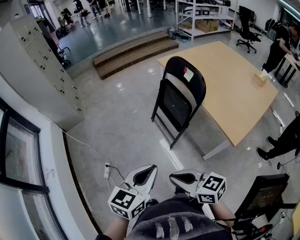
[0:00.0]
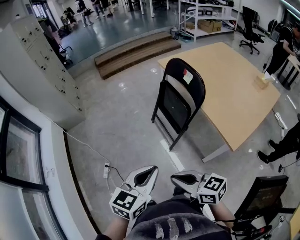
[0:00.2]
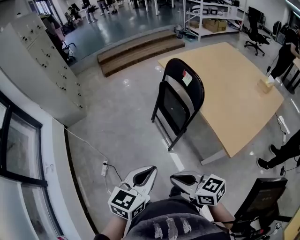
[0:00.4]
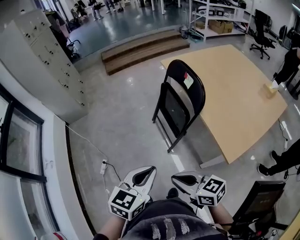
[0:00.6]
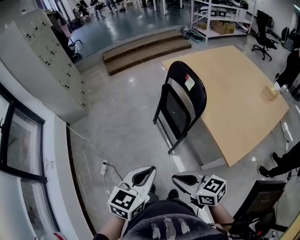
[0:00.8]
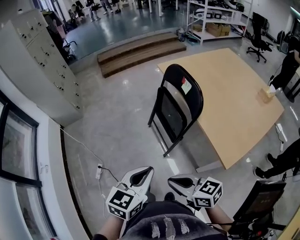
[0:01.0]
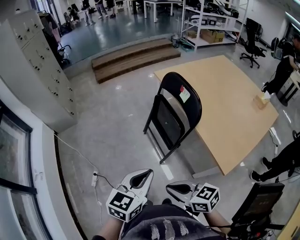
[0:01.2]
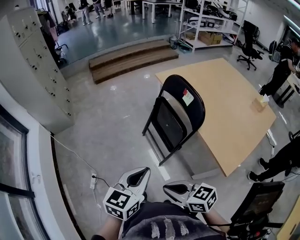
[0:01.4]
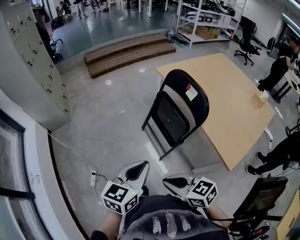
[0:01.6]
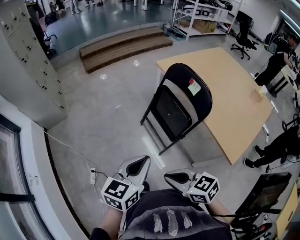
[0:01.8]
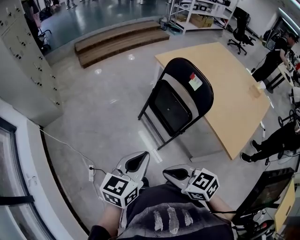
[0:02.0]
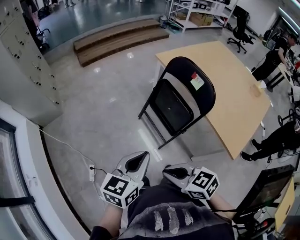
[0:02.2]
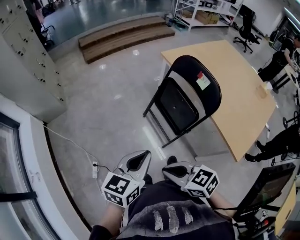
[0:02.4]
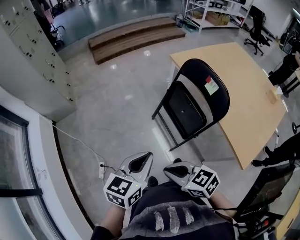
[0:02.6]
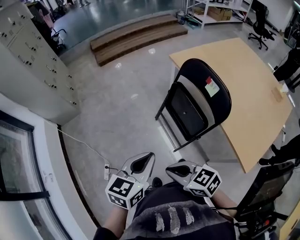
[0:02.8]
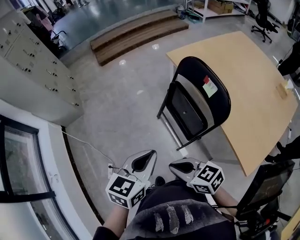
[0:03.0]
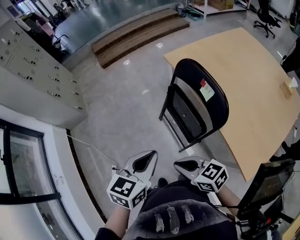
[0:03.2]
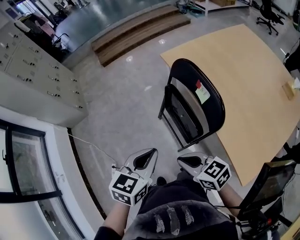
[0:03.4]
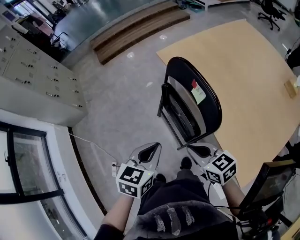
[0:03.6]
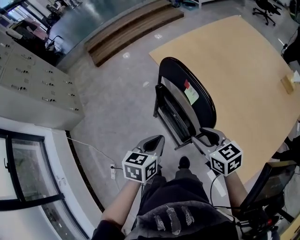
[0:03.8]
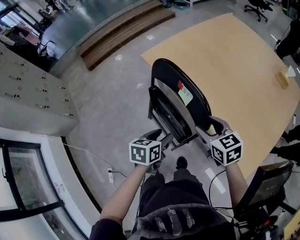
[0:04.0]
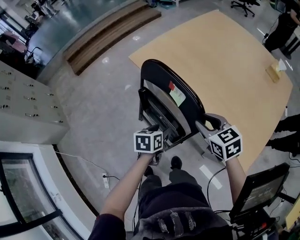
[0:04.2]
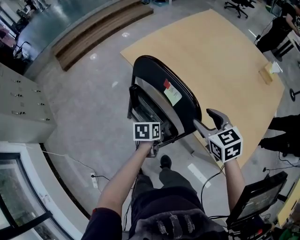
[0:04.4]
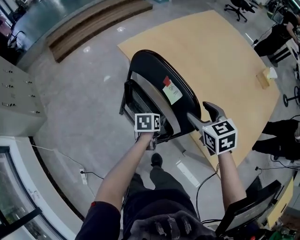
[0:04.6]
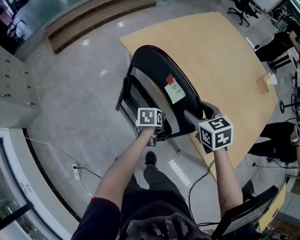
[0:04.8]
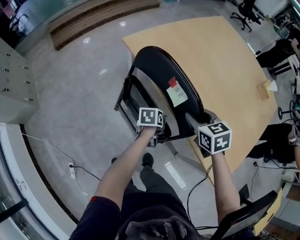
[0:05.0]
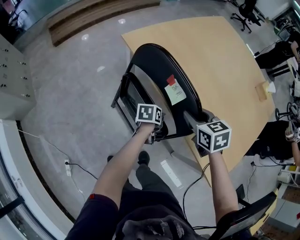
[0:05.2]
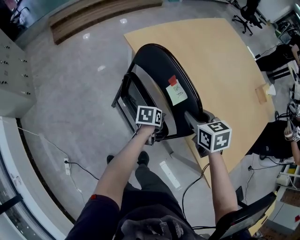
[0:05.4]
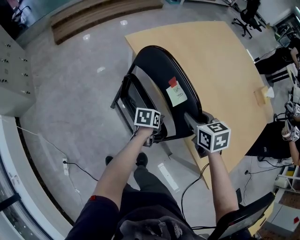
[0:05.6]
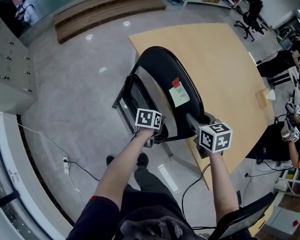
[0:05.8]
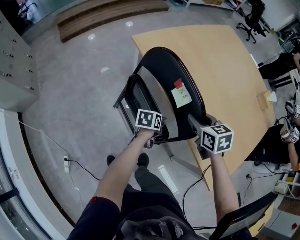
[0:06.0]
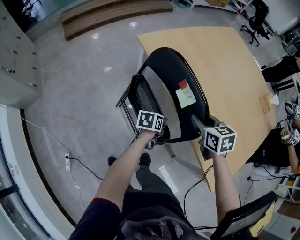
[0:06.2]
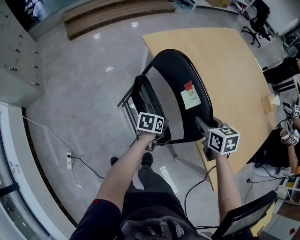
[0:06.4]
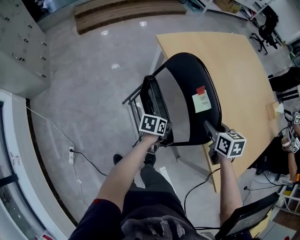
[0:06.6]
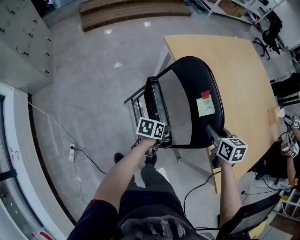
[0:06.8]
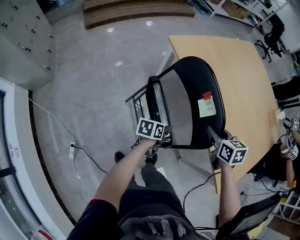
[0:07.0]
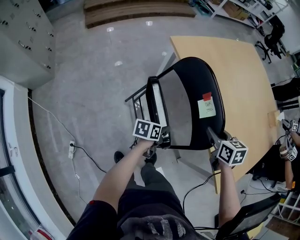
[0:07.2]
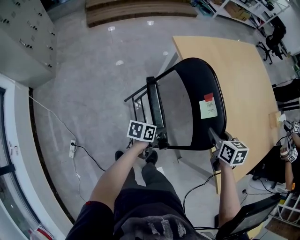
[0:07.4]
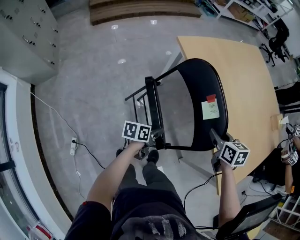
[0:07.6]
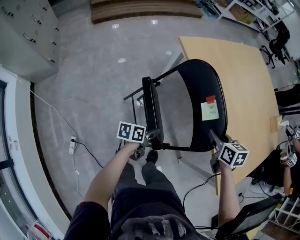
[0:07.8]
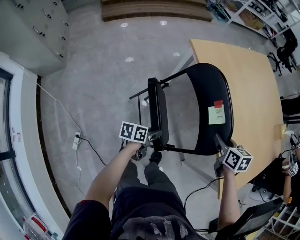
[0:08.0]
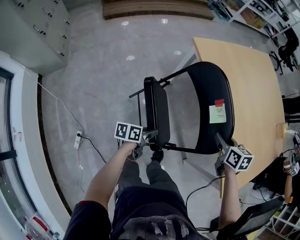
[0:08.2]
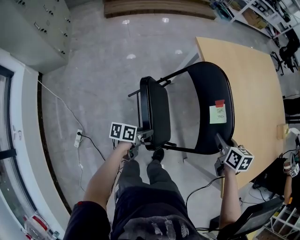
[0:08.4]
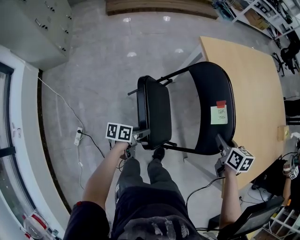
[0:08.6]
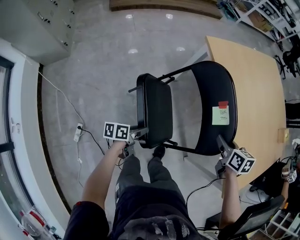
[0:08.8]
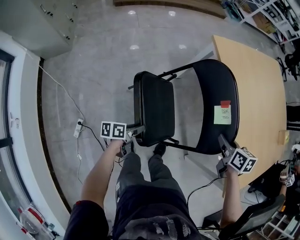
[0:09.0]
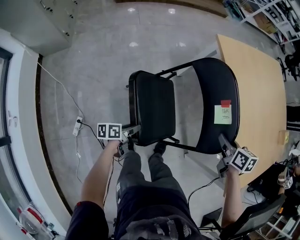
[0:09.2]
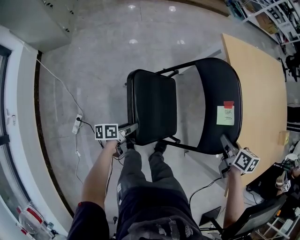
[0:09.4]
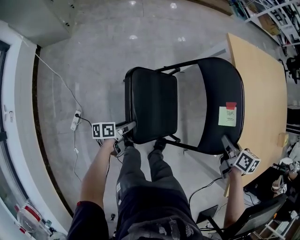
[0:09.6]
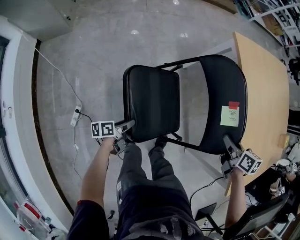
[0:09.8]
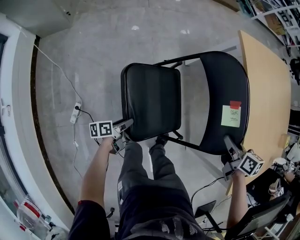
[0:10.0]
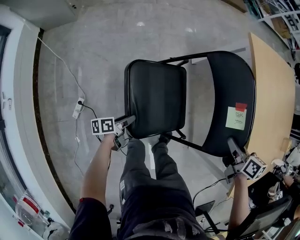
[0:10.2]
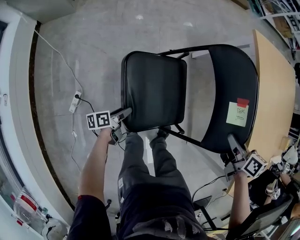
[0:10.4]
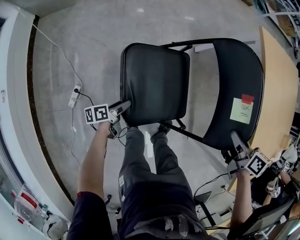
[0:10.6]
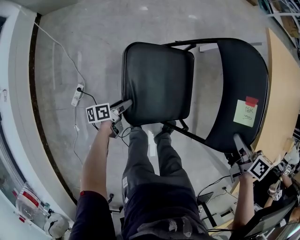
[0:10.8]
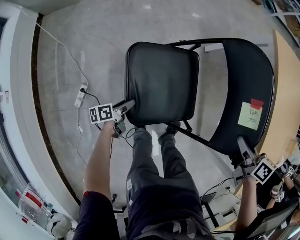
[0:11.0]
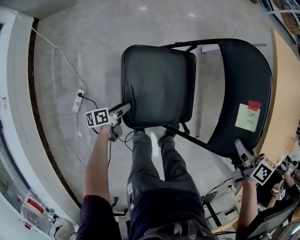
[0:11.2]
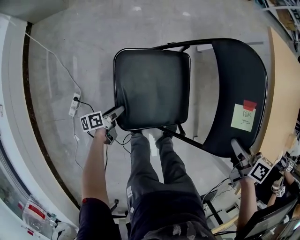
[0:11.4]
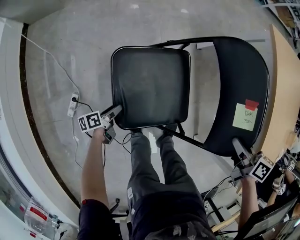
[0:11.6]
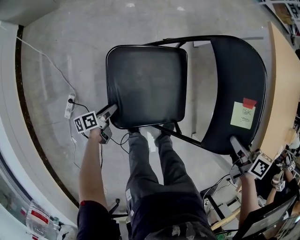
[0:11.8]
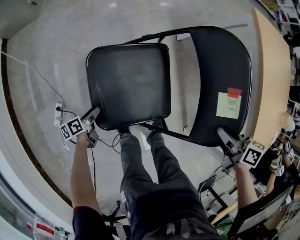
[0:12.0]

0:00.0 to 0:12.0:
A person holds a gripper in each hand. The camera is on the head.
0:00.0 to 0:01.6: The two grippers go some 15 cm forward.
0:01.6 to 0:03.0: The grippers both shift forward by roughly 15 cm.
0:03.0 to 0:04.4: The left gripper changes place by some 40 cm, turns by roughly 30 degrees, and opens. Meanwhile the right gripper shifts by approximately 40 cm, turns by roughly 50 degrees, and opens its fingers.
0:04.4 to 0:06.0: Both grippers travel together downward, some 5 cm.
0:06.0 to 0:07.6: The left gripper heads backward and to the left, covering approximately 20 cm. Meanwhile the right gripper moves backward, roughly 5 cm.
0:07.6 to 0:09.0: The left gripper heads to the left, backward and downward, covering roughly 20 cm; the right gripper moves to the left, roughly 5 cm.
0:09.0 to 0:10.4: The right gripper moves to the left and downward, some 15 cm, while the left gripper goes about 25 cm to the left, downward and backward, and rotates approximately 20 degrees.
0:10.4 to 0:12.0: The left gripper heads downward, covering approximately 5 cm.

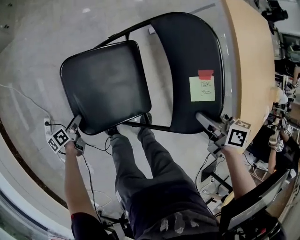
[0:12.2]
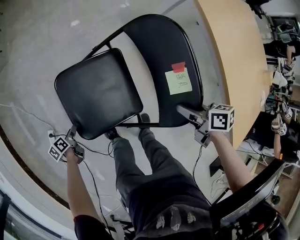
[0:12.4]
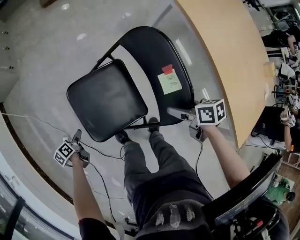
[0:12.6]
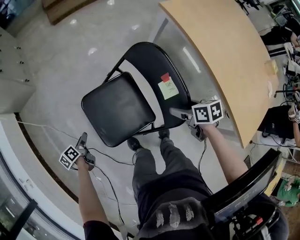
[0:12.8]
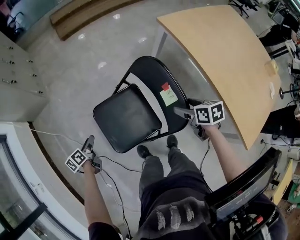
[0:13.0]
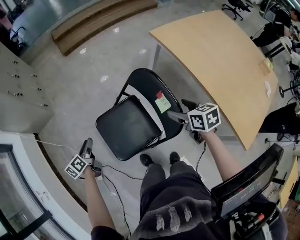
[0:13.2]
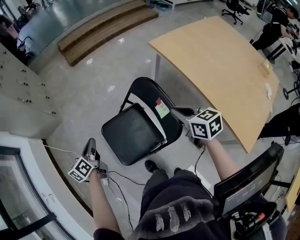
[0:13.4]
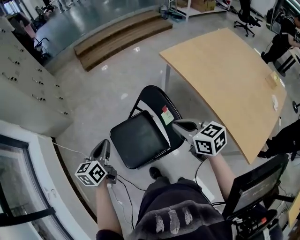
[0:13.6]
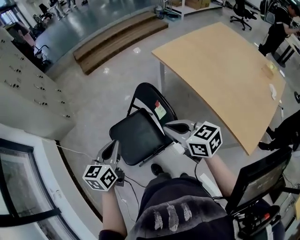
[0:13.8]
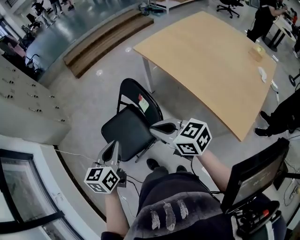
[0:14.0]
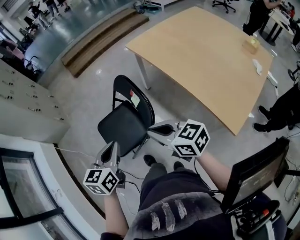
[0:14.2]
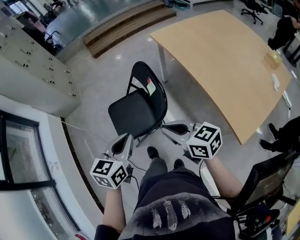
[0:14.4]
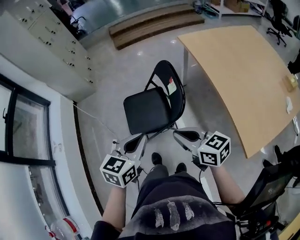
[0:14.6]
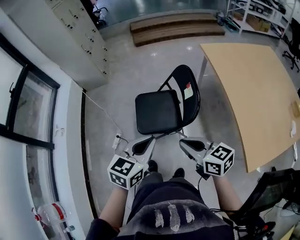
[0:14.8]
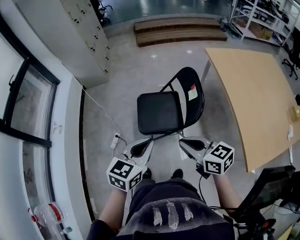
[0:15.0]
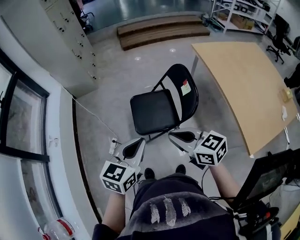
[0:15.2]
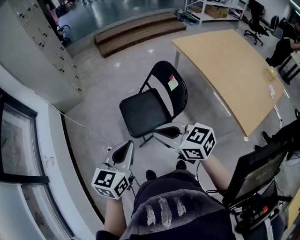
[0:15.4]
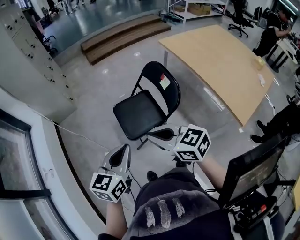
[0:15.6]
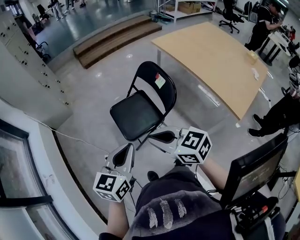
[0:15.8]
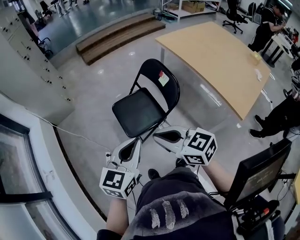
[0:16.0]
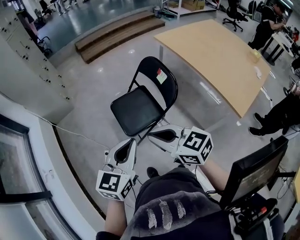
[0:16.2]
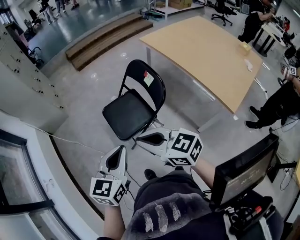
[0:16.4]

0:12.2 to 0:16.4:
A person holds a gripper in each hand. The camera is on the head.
0:12.2 to 0:13.6: The right gripper shifts roughly 25 cm upward, rotates about 40 degrees, and opens and closes again. The left gripper is displaced upward by some 50 cm, rotates around the line of its fingers by approximately 50 degrees, clockwise from behind, and closes.
0:13.6 to 0:15.0: The left gripper heads backward, covering approximately 30 cm. The right gripper travels backward and to the left by roughly 25 cm, and turns by roughly 30 degrees.
0:15.0 to 0:16.4: The grippers both shift to the left by approximately 15 cm.

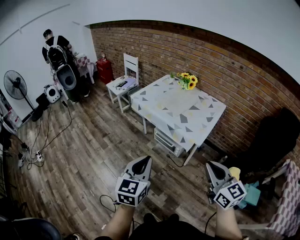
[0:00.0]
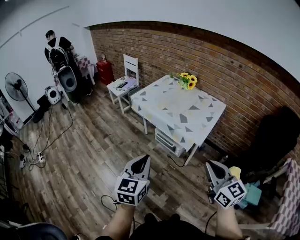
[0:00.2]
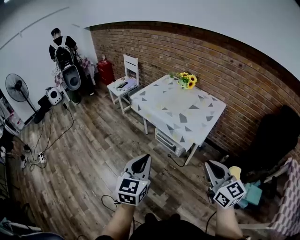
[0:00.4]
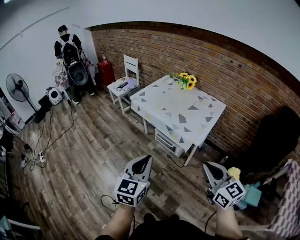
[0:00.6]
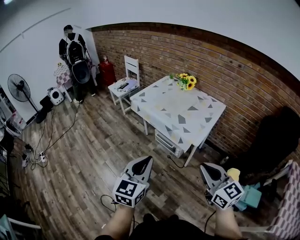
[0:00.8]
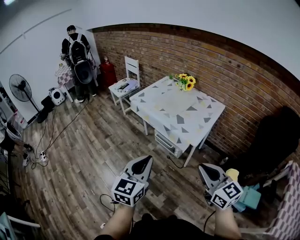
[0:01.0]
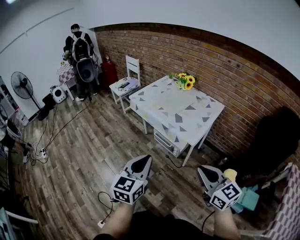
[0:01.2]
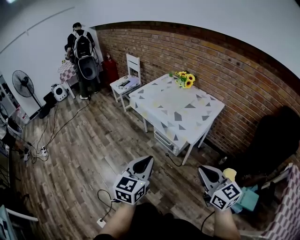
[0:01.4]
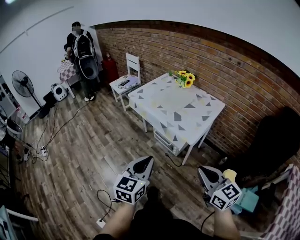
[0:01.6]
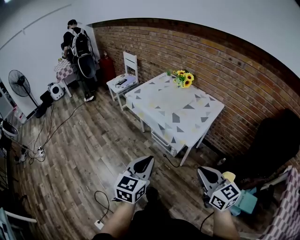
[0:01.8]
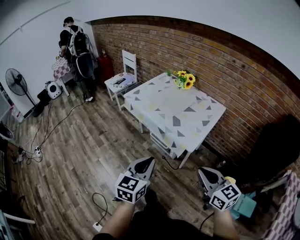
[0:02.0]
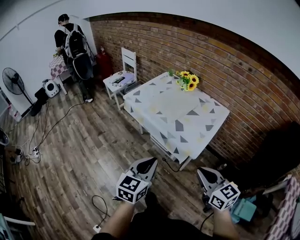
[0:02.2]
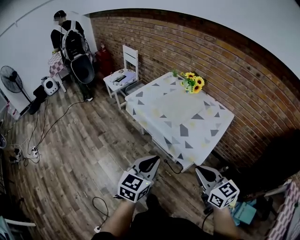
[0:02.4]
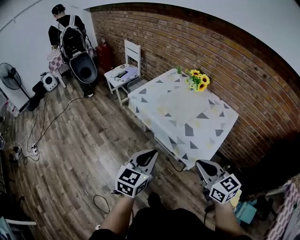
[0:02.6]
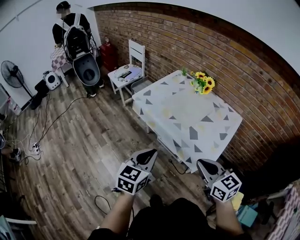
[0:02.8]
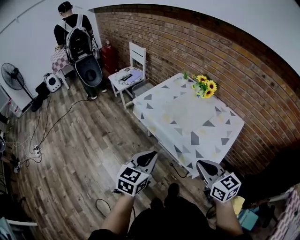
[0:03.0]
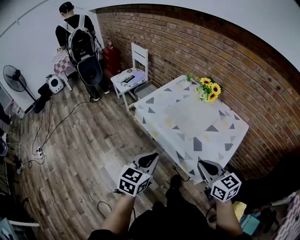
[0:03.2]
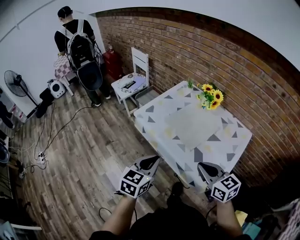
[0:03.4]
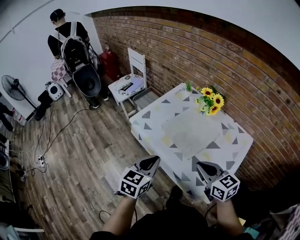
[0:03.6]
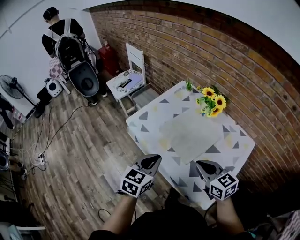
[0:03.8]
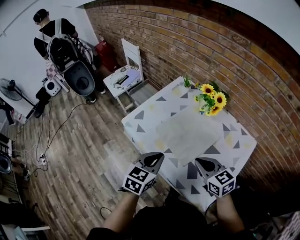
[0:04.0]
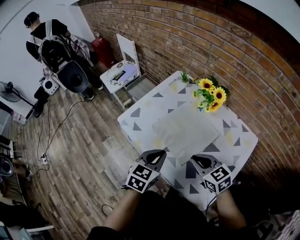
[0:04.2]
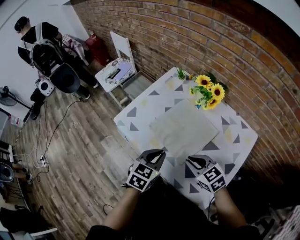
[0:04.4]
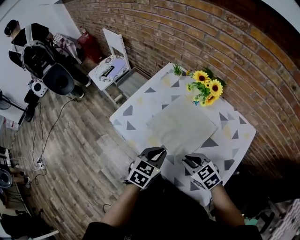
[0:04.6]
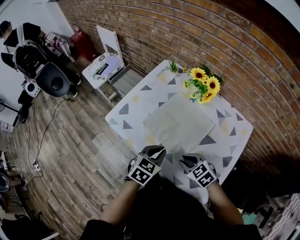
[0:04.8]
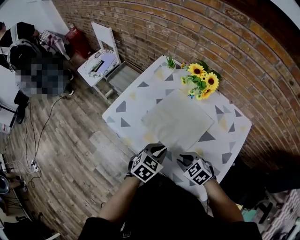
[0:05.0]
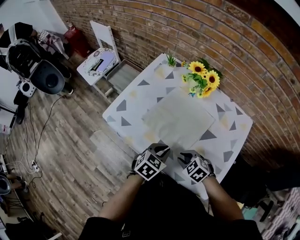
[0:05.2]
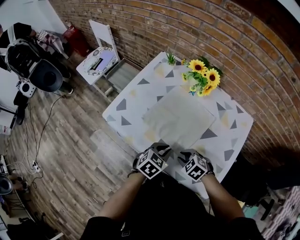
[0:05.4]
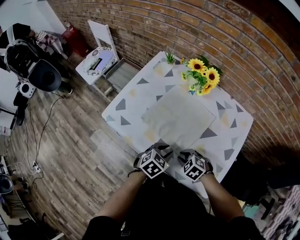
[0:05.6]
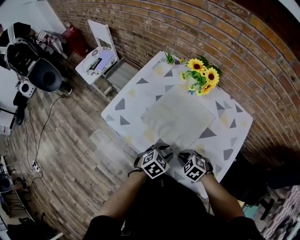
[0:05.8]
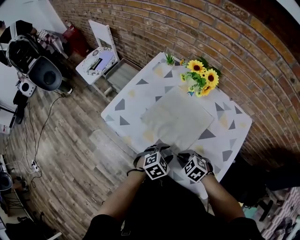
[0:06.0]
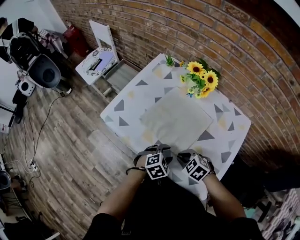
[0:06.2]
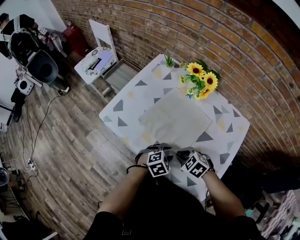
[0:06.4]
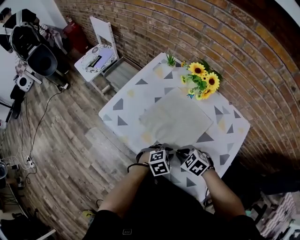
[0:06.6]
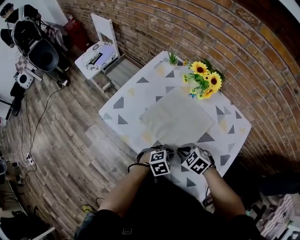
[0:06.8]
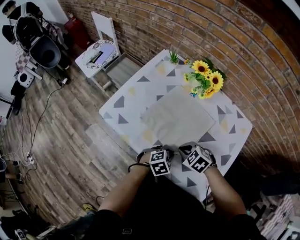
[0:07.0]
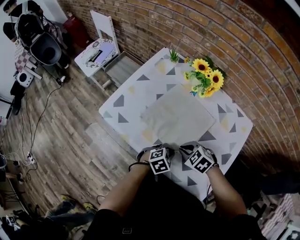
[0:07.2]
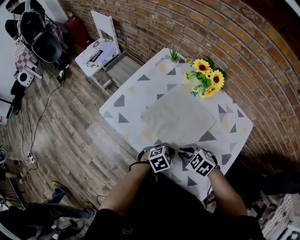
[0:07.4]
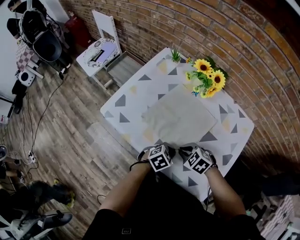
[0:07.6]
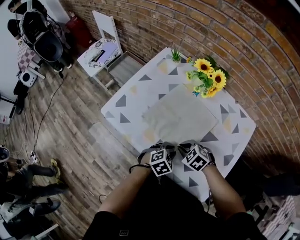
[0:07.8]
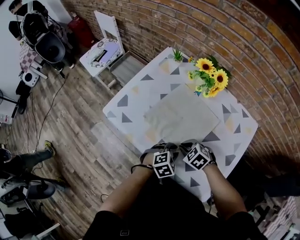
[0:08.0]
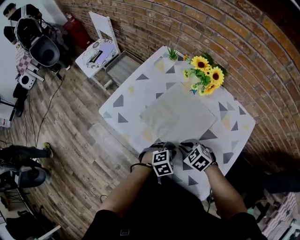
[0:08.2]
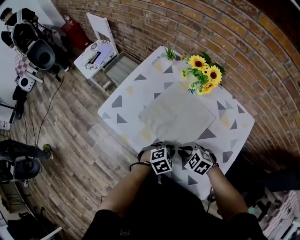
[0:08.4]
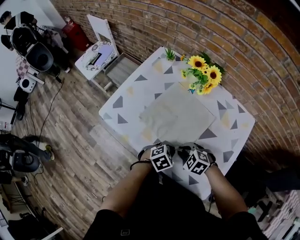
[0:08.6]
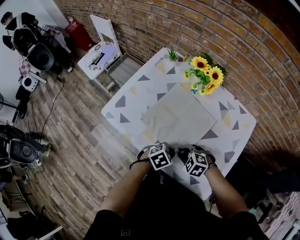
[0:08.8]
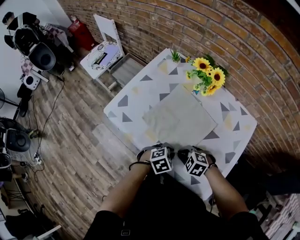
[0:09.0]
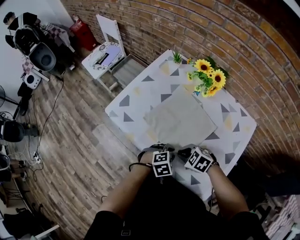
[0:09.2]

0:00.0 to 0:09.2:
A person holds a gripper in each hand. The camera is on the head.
0:00.0 to 0:01.6: The grippers both shift to the right by roughly 10 cm.
0:01.6 to 0:03.0: Both grippers travel together forward, approximately 30 cm.
0:03.0 to 0:04.6: The left gripper shifts approximately 35 cm forward, downward and to the right, and swivels roughly 20 degrees; the right gripper moves forward and downward, roughly 30 cm, and rotates roughly 30 degrees.
0:04.6 to 0:06.2: The right gripper travels downward by about 5 cm; the left gripper shifts roughly 10 cm downward, rotates approximately 40 degrees, and opens up.
0:06.2 to 0:07.6: The left gripper closes.
0:07.6 to 0:09.2: The left gripper opens.
